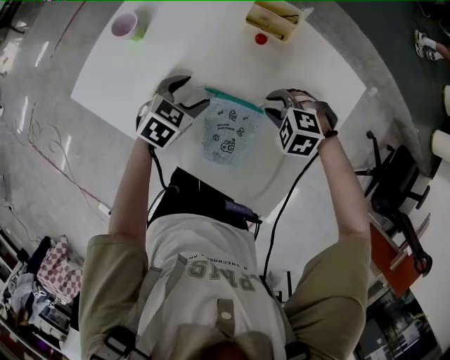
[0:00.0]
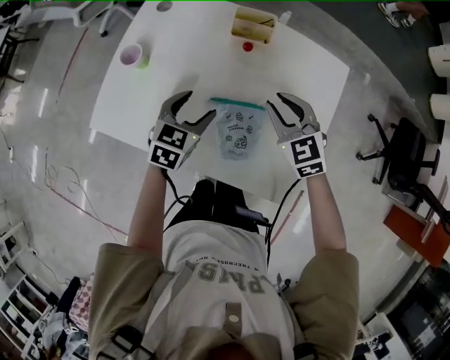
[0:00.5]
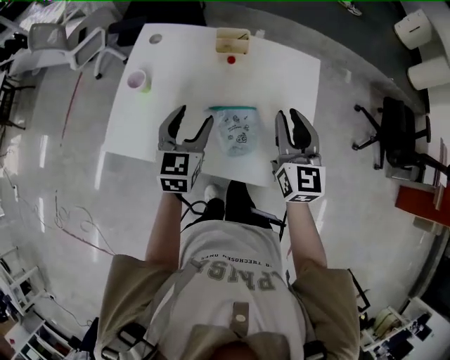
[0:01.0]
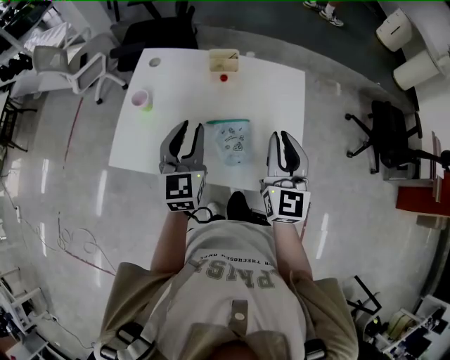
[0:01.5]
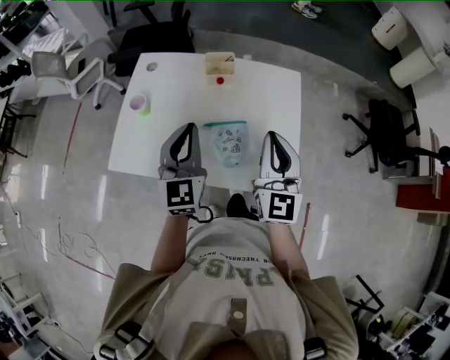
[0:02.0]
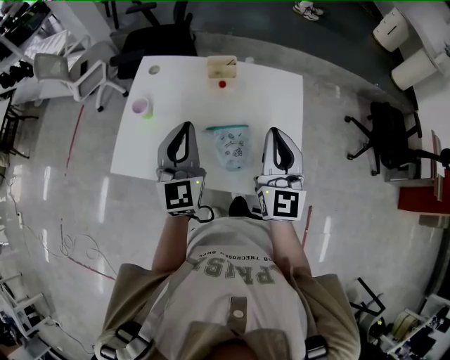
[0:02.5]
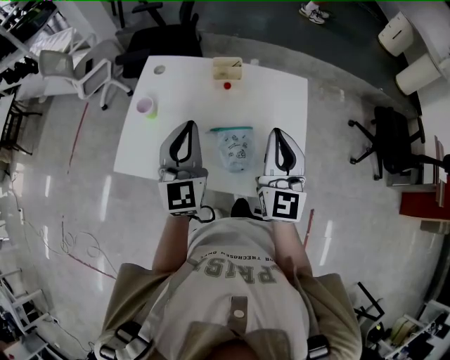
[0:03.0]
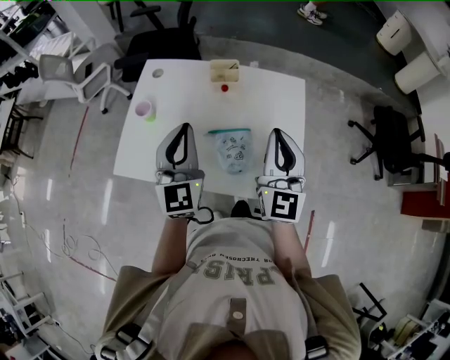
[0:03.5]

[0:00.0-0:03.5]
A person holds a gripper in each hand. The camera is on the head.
0:00.0 to 0:02.0: Both grippers move upward, about 35 cm. The left gripper points its fingers about 50 degrees further upward, and closes. Meanwhile the right gripper tilts its fingers about 80 degrees upward, and closes.
0:02.0 to 0:03.5: The grippers stay close to where they were, moving slightly.

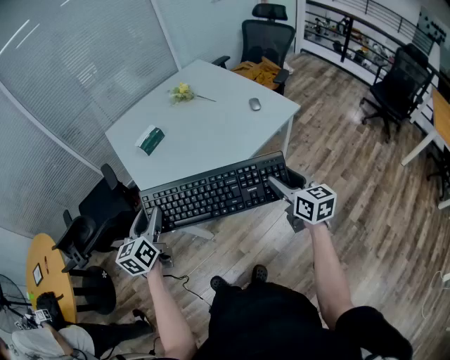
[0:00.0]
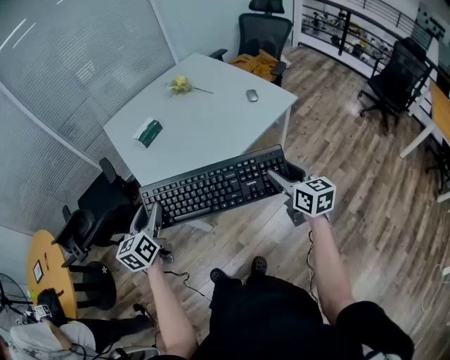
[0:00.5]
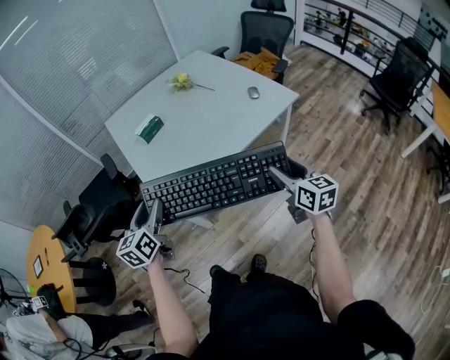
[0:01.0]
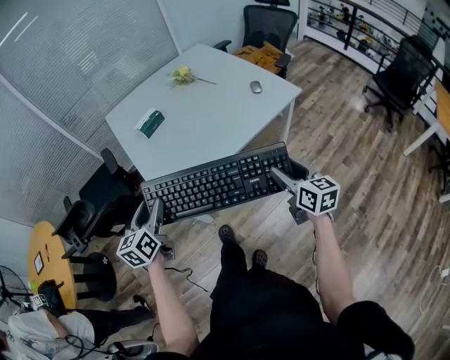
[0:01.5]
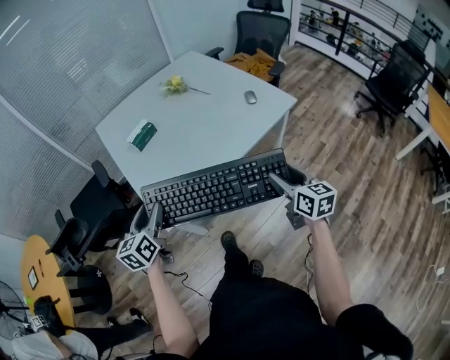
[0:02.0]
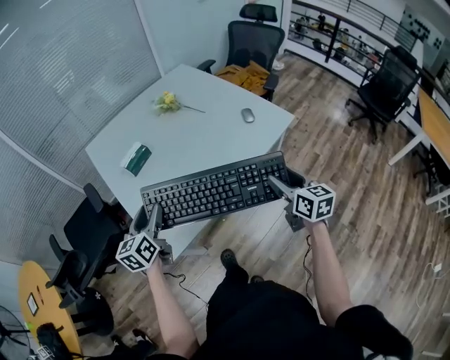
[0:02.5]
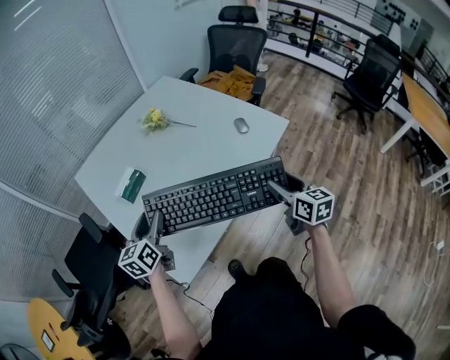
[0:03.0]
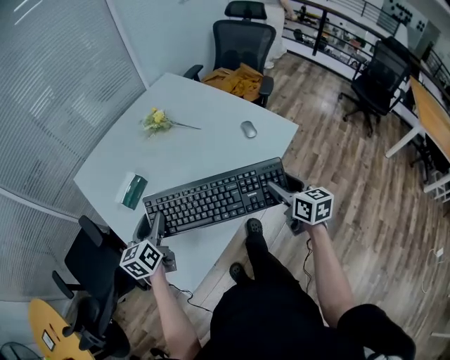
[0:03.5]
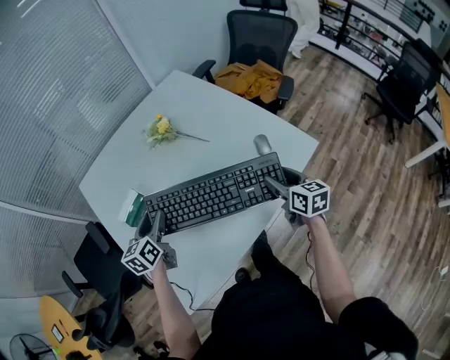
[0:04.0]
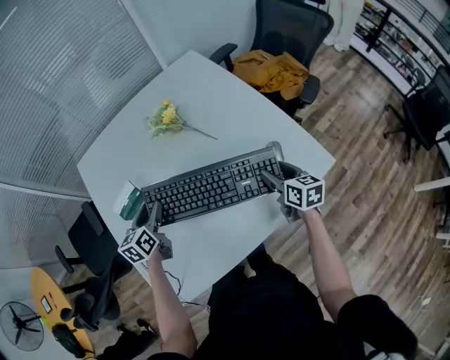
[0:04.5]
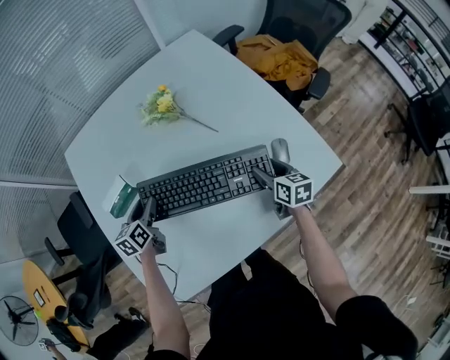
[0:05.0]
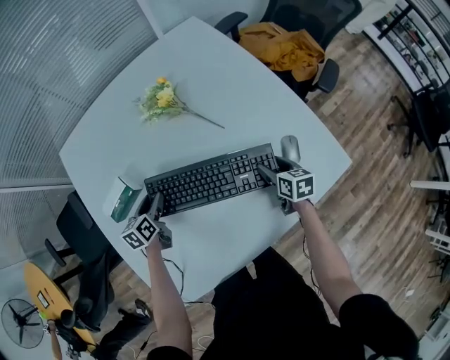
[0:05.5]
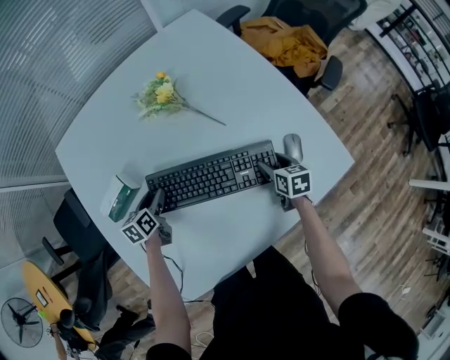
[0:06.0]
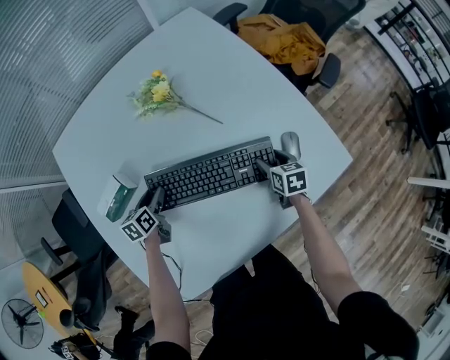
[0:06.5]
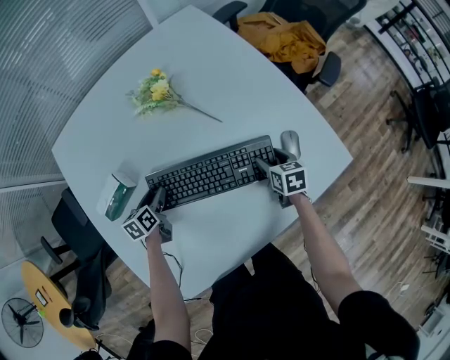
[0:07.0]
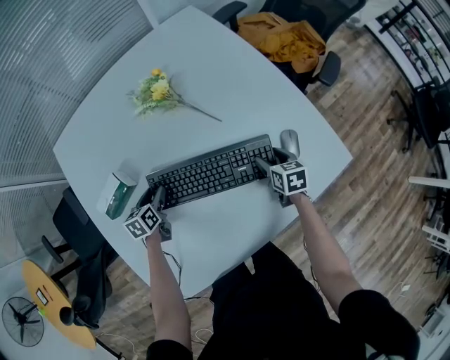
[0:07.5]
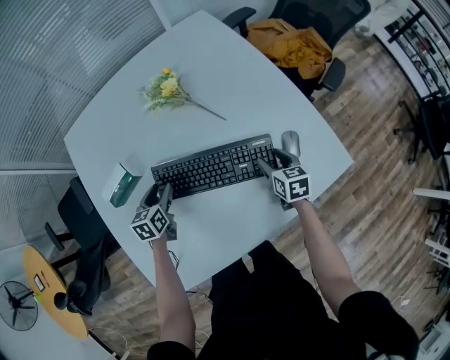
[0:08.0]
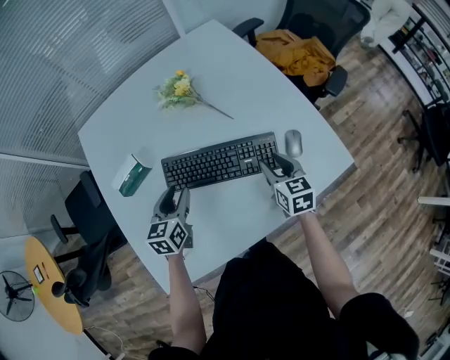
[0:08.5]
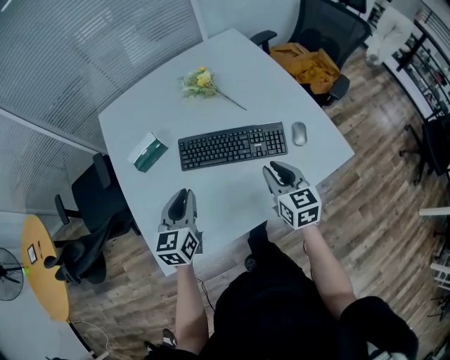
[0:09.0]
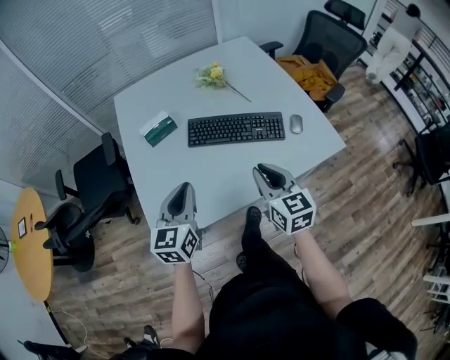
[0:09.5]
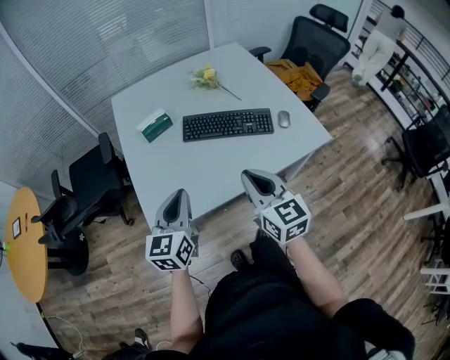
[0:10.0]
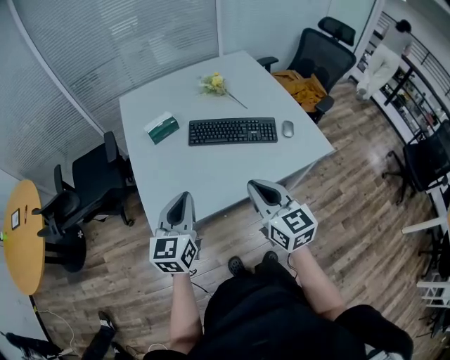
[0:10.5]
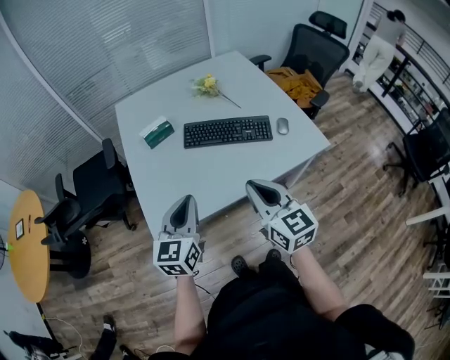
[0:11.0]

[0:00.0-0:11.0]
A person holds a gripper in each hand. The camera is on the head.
0:00.0 to 0:02.0: The grippers make only small movements.
0:02.0 to 0:03.5: The two grippers go some 25 cm forward.
0:03.5 to 0:05.5: The grippers both shift forward and downward by roughly 35 cm. The right gripper changes its angle by about 30 degrees; the left gripper changes its angle by about 30 degrees.
0:05.5 to 0:07.5: The grippers stay close to where they were, moving slightly.
0:07.5 to 0:09.0: The left gripper moves upward and backward, approximately 30 cm, swivels some 30 degrees, and closes up; the right gripper heads upward, backward and to the left, covering about 25 cm, rotates some 30 degrees, and closes up.
0:09.0 to 0:11.0: The left gripper heads backward and upward, covering some 25 cm, while the right gripper travels backward, upward and to the left by approximately 30 cm.

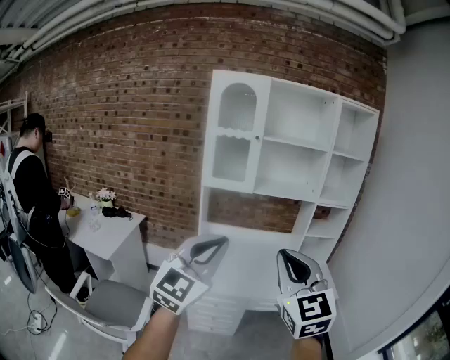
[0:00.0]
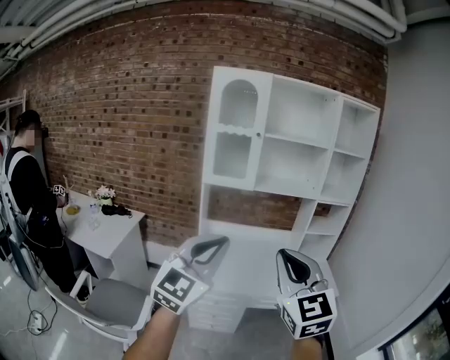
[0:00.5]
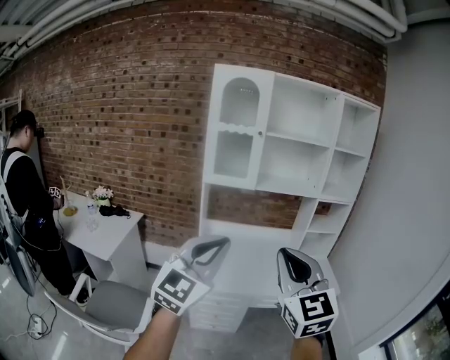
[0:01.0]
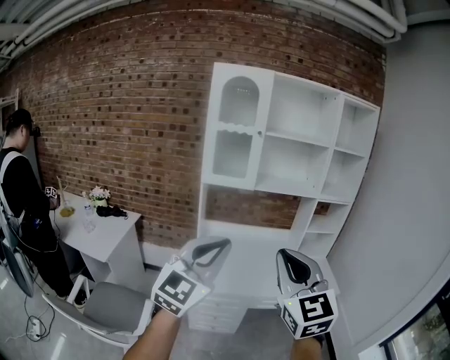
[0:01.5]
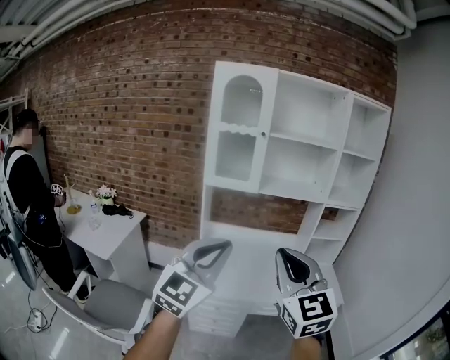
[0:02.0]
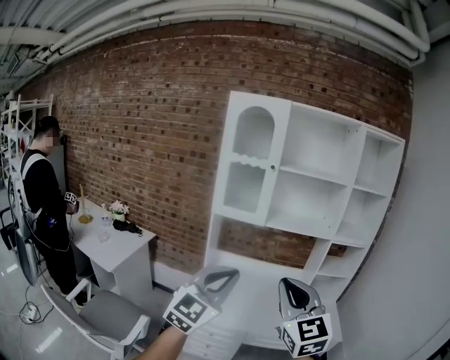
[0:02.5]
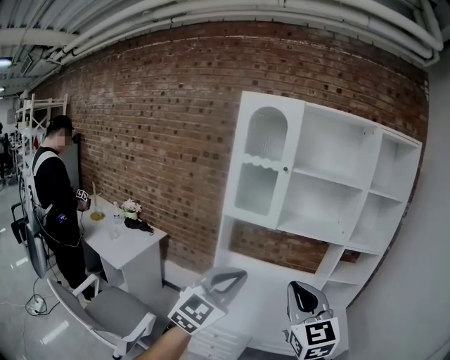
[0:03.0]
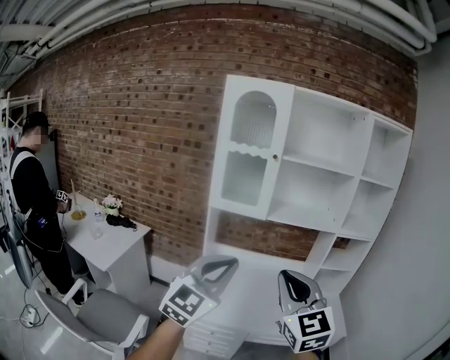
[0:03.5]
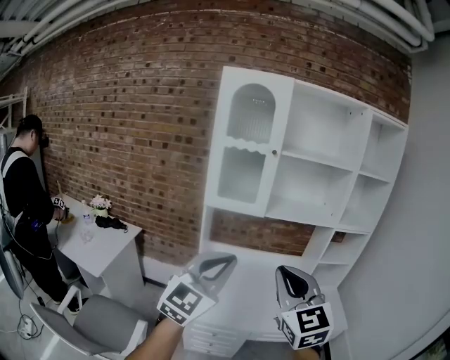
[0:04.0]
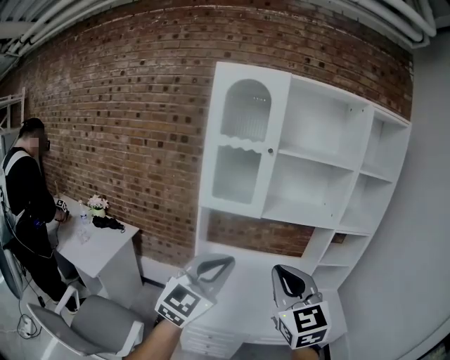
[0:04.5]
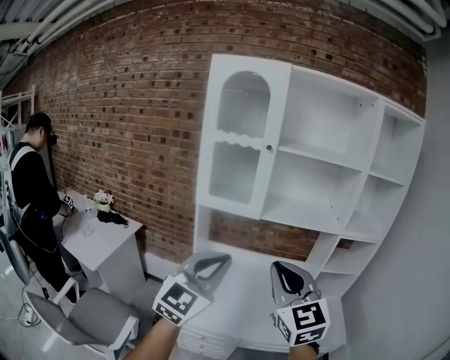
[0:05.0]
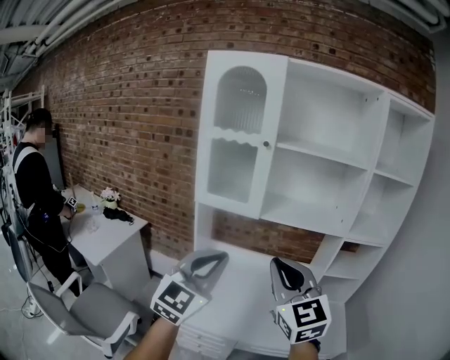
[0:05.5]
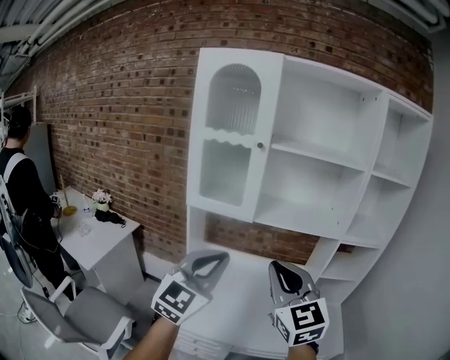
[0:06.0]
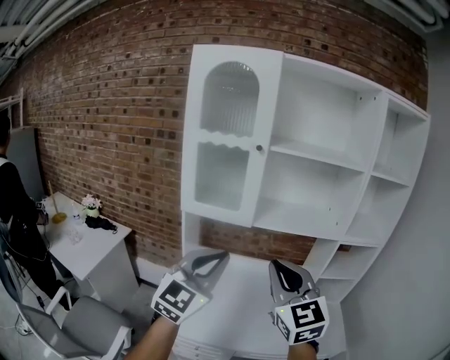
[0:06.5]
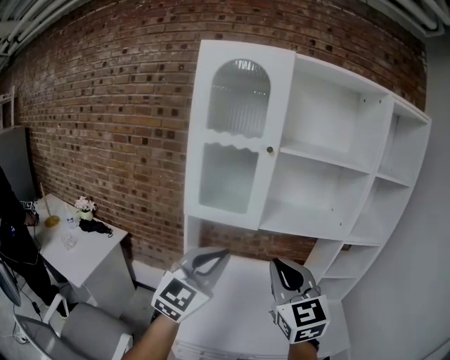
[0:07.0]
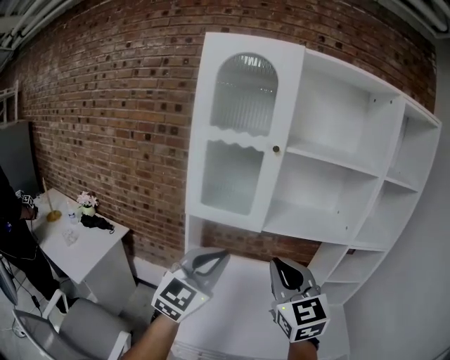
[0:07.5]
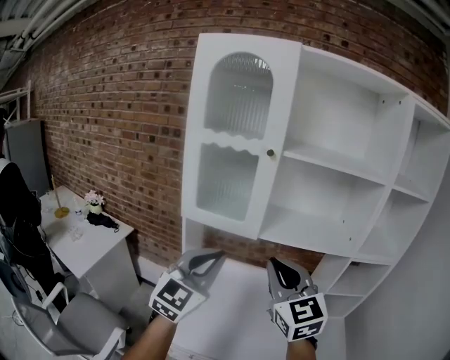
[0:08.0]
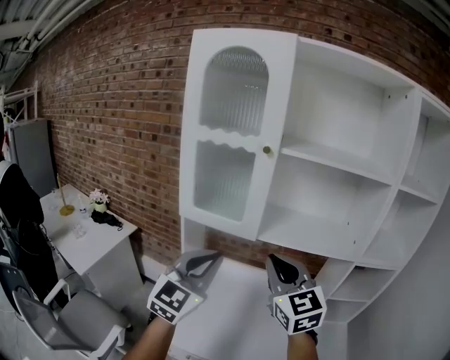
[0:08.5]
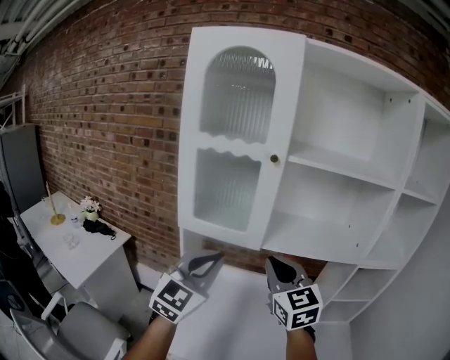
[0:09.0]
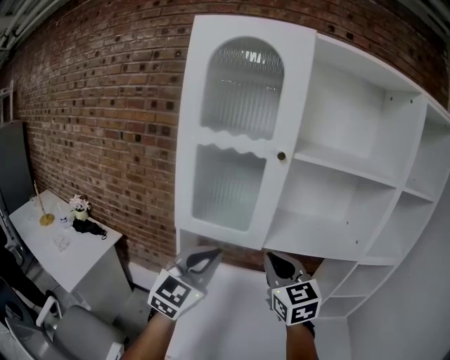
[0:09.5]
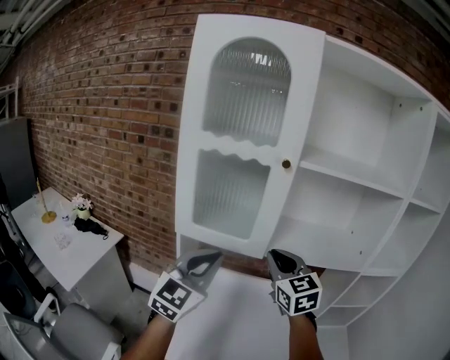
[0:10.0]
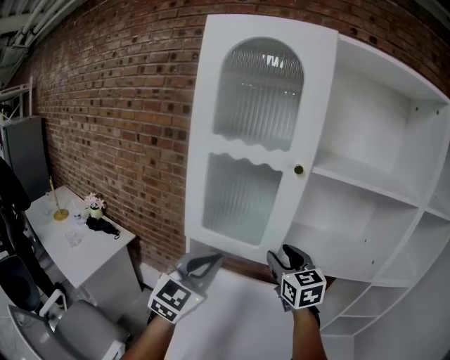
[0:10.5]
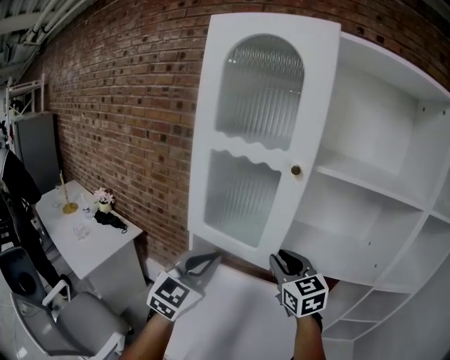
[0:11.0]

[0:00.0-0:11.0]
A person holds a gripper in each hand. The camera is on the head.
0:00.0 to 0:02.0: Both grippers move forward, approximately 5 cm.
0:02.0 to 0:03.5: The two grippers go roughly 10 cm forward.
0:03.5 to 0:05.5: The grippers both shift forward by about 15 cm.
0:05.5 to 0:07.5: Both grippers travel together forward and to the left, some 15 cm.
0:07.5 to 0:09.0: Both grippers move forward, approximately 10 cm.
0:09.0 to 0:11.0: The right gripper is displaced forward by roughly 10 cm, and opens and closes again, while the left gripper heads forward, covering some 5 cm.

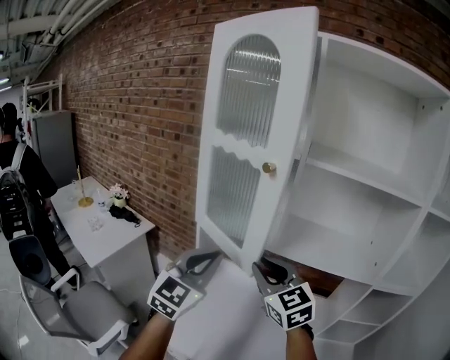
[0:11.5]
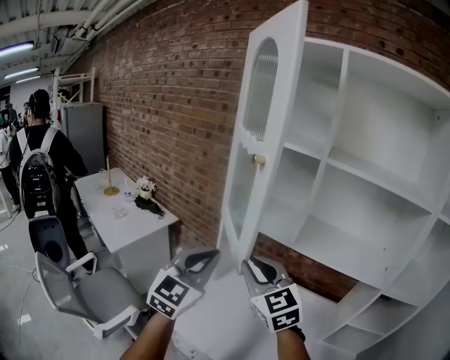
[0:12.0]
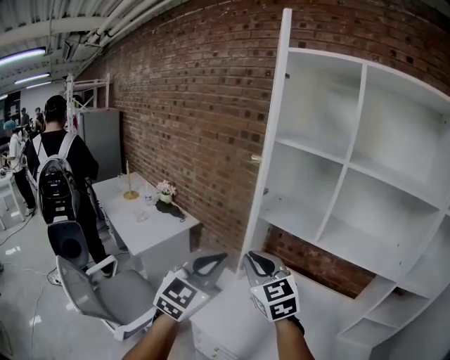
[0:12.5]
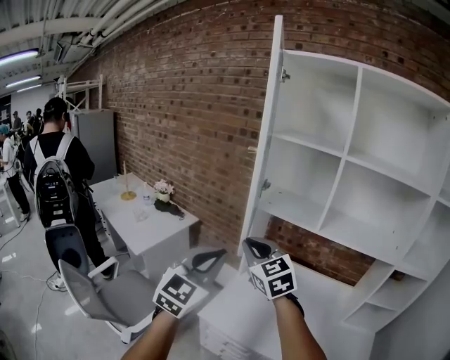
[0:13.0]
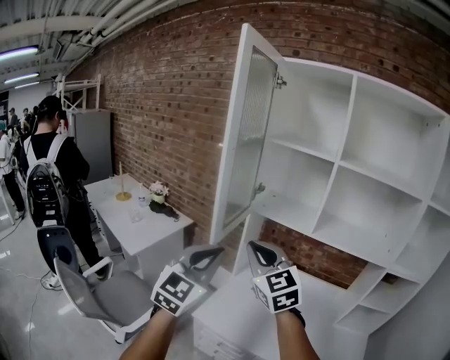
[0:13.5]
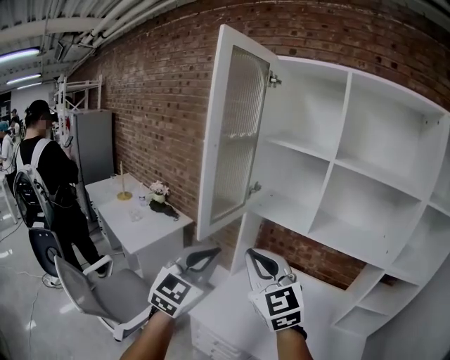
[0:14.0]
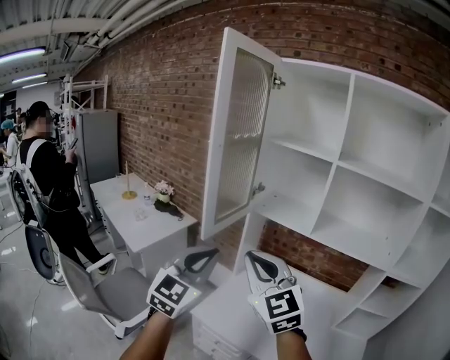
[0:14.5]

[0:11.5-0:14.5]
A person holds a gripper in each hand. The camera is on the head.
0:11.5 to 0:13.0: The right gripper goes about 20 cm to the left. Meanwhile the left gripper is displaced to the left and backward by about 25 cm.
0:13.0 to 0:14.5: The right gripper shifts approximately 15 cm backward and upward.
